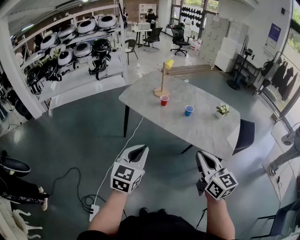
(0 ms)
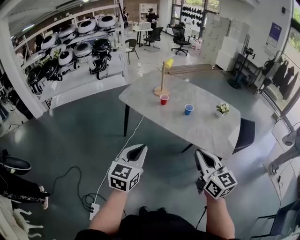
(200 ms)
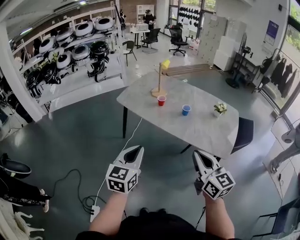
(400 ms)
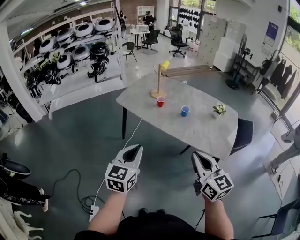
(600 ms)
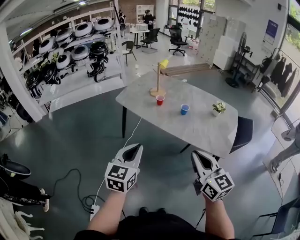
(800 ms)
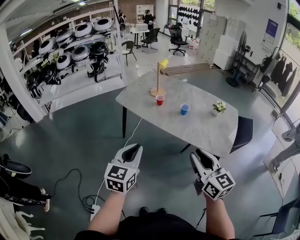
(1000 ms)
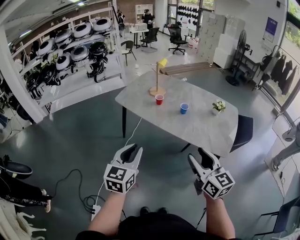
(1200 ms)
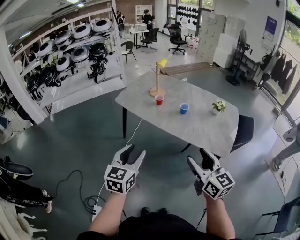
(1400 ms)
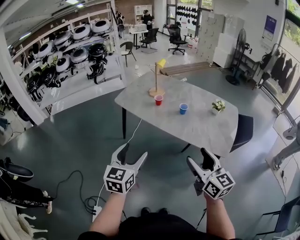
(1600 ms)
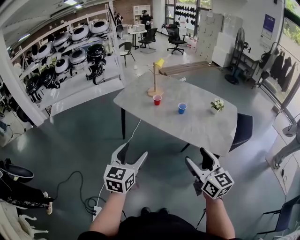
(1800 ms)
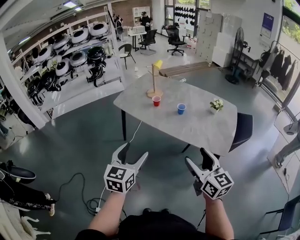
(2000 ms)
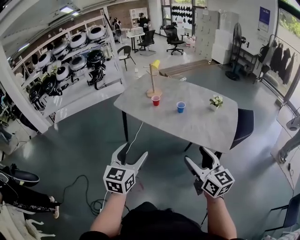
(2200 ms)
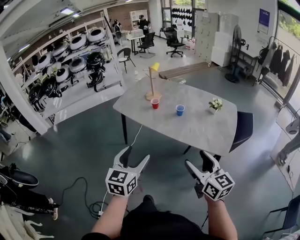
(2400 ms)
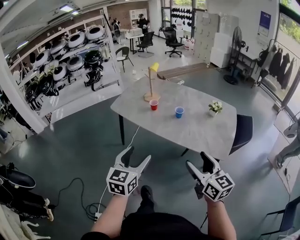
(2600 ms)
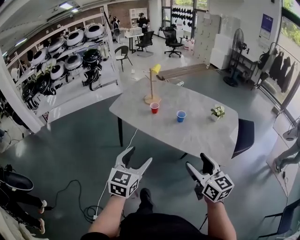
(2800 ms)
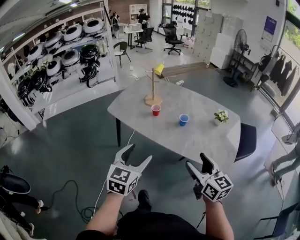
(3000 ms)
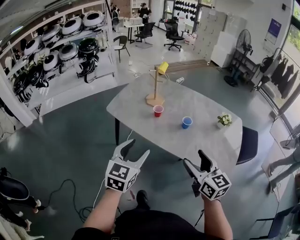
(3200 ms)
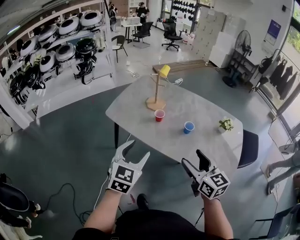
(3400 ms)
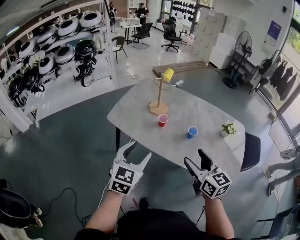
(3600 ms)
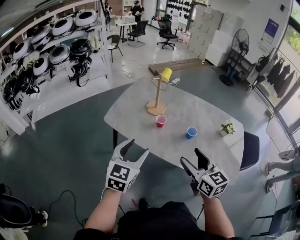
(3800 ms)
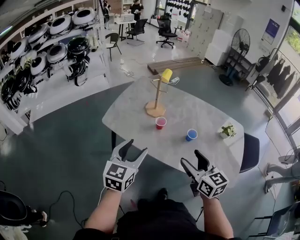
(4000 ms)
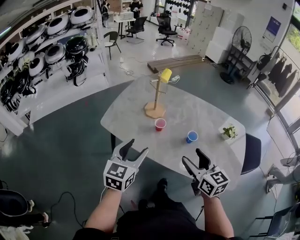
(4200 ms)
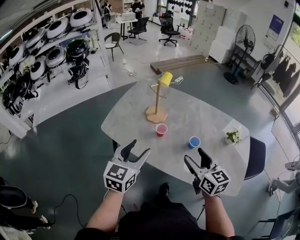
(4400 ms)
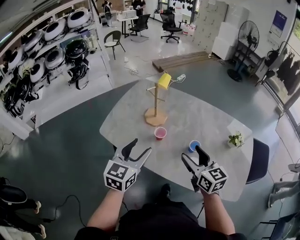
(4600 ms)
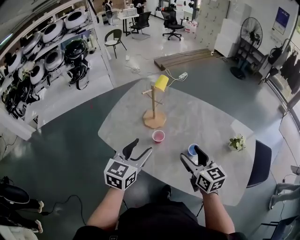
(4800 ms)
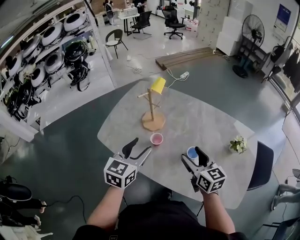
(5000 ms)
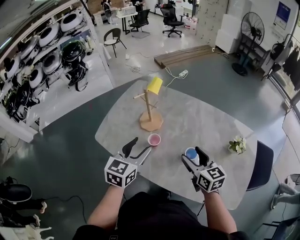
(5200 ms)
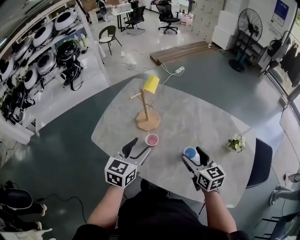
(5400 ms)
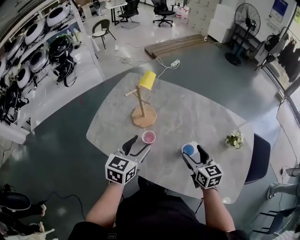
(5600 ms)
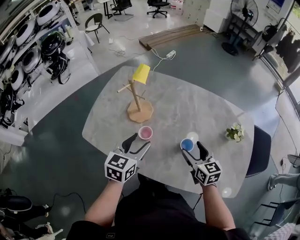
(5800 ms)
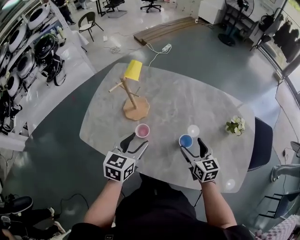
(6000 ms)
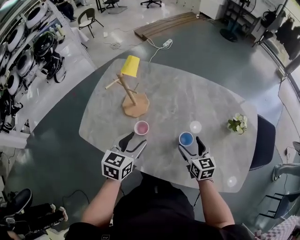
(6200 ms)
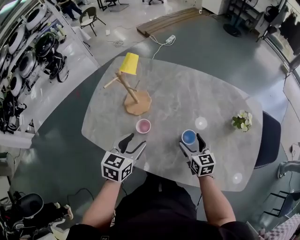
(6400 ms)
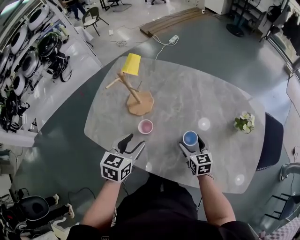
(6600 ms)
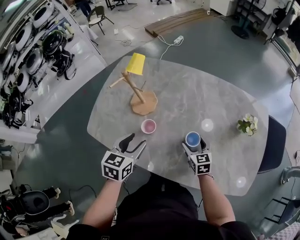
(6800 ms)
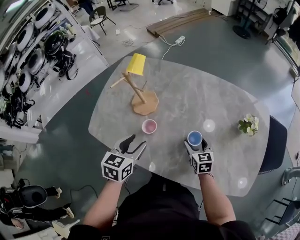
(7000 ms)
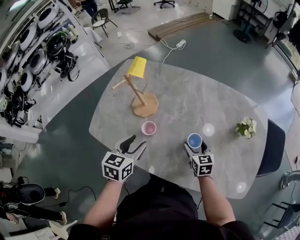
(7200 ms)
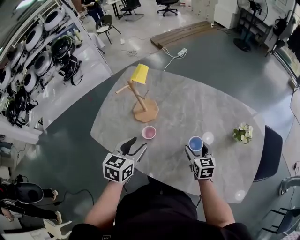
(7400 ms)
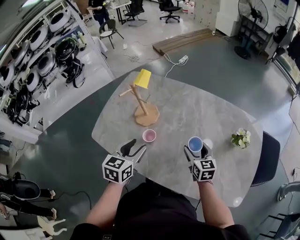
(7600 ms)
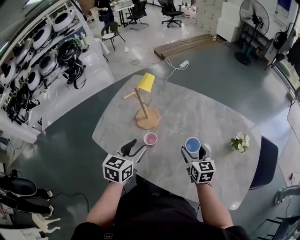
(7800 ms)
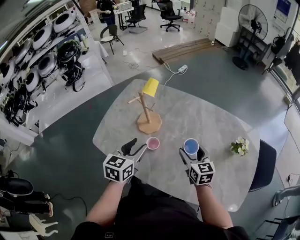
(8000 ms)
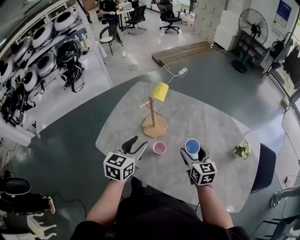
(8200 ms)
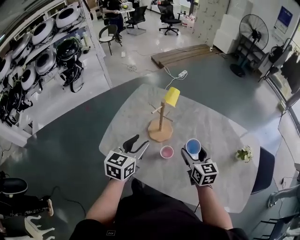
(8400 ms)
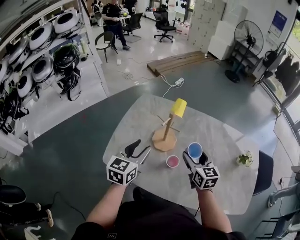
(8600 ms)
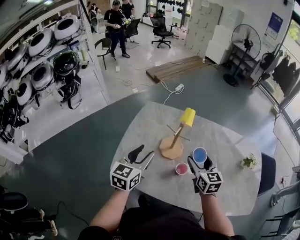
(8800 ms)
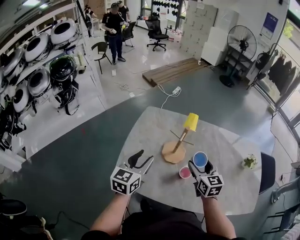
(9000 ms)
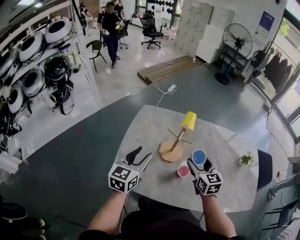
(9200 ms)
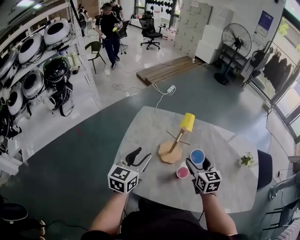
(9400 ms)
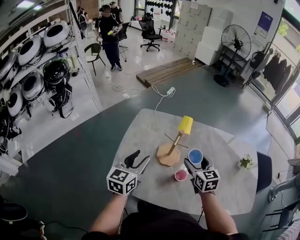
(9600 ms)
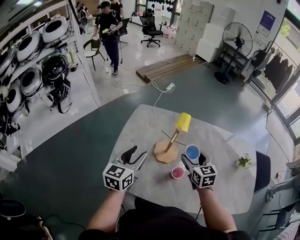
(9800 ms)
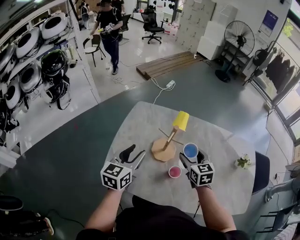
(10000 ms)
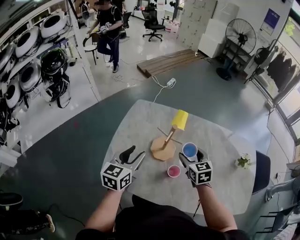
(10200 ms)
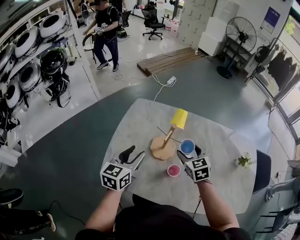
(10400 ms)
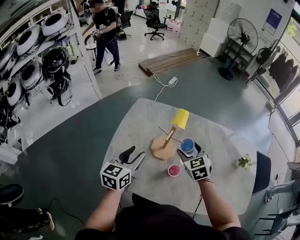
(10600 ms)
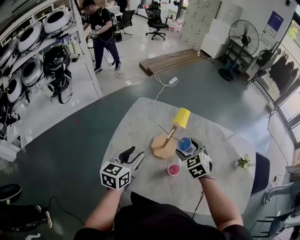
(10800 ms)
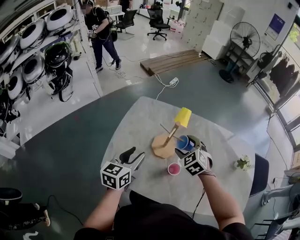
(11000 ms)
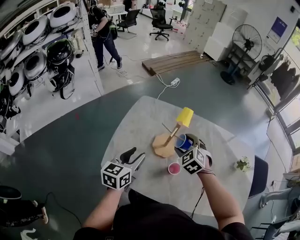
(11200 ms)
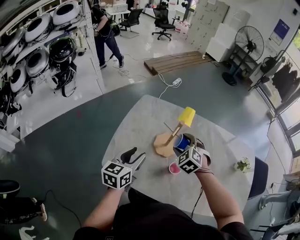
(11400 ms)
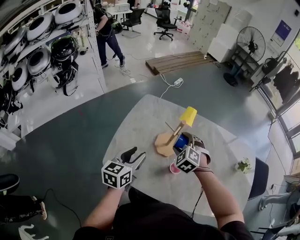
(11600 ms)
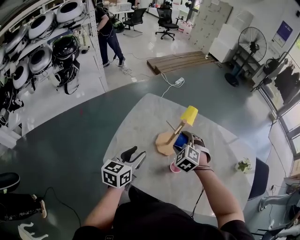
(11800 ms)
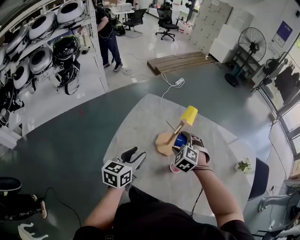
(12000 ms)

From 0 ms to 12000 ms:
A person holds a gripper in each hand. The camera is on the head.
From 0 ms to 1600 ms: The right gripper opens. The left gripper opens its fingers.
From 1600 ms to 3000 ms: Both grippers move forward, roughly 15 cm.
From 3000 ms to 4400 ms: Both grippers move forward, approximately 25 cm.
From 4400 ms to 6000 ms: The left gripper goes approximately 20 cm forward, downward and to the right, while the right gripper travels downward, forward and to the right by roughly 25 cm.
From 6000 ms to 7600 ms: The right gripper reaches some 10 cm downward, then returns.
From 7600 ms to 9000 ms: The right gripper heads to the left and upward, covering some 25 cm, while the left gripper goes about 25 cm to the left and forward.
From 9000 ms to 10400 ms: The right gripper shifts roughly 5 cm forward, and changes its angle by some 20 degrees.
From 10400 ms to 12000 ms: The left gripper moves about 5 cm. Meanwhile the right gripper is displaced to the left by approximately 10 cm, and rolls counterclockwise, seen from behind, by some 50 degrees.

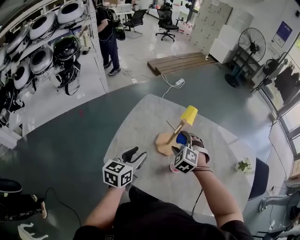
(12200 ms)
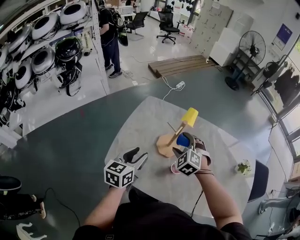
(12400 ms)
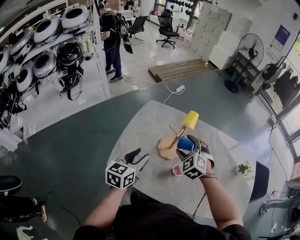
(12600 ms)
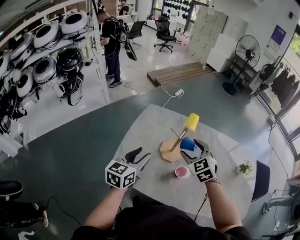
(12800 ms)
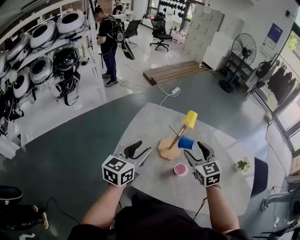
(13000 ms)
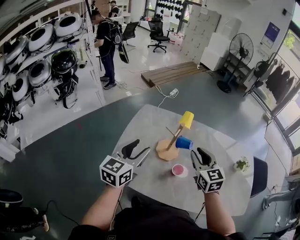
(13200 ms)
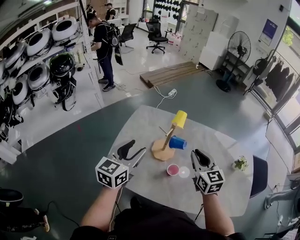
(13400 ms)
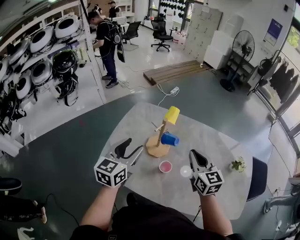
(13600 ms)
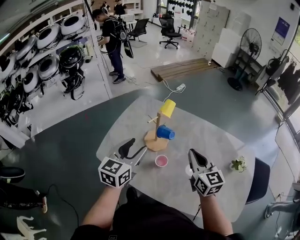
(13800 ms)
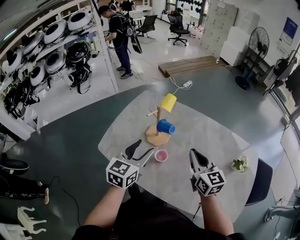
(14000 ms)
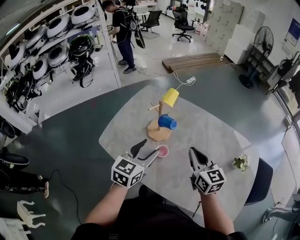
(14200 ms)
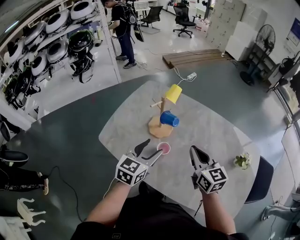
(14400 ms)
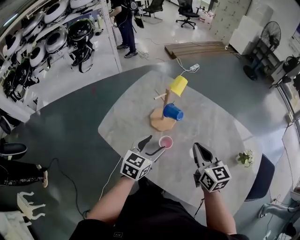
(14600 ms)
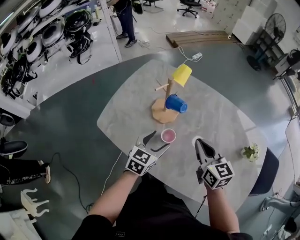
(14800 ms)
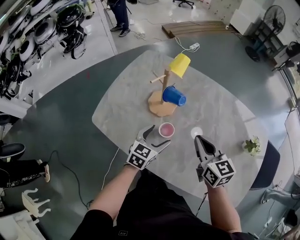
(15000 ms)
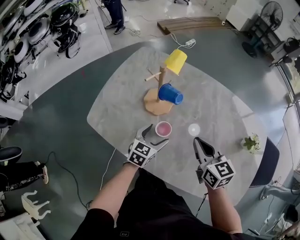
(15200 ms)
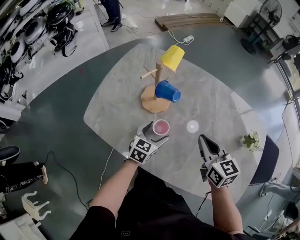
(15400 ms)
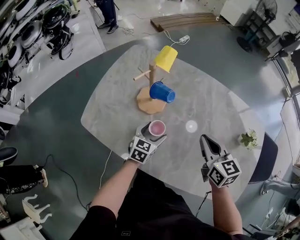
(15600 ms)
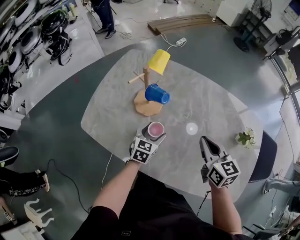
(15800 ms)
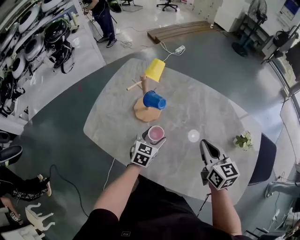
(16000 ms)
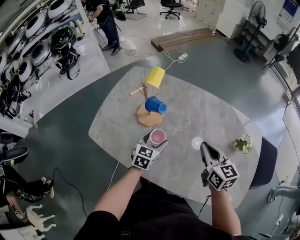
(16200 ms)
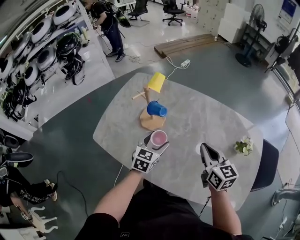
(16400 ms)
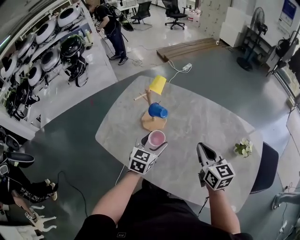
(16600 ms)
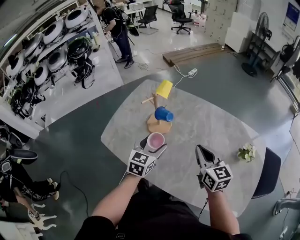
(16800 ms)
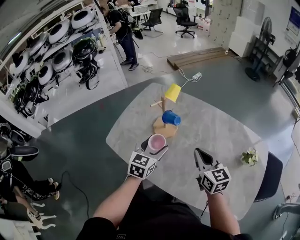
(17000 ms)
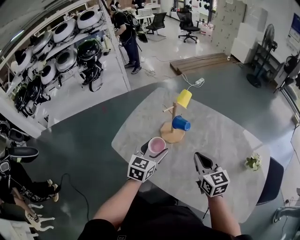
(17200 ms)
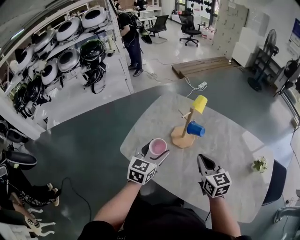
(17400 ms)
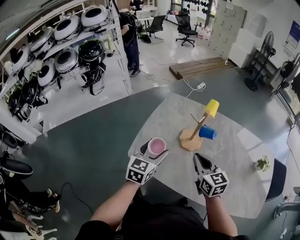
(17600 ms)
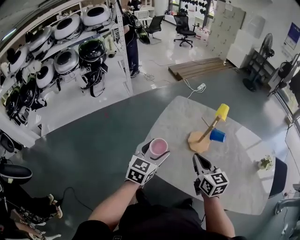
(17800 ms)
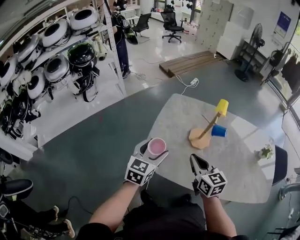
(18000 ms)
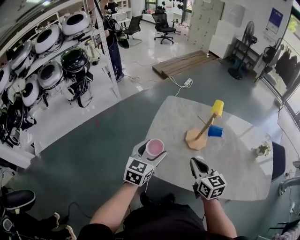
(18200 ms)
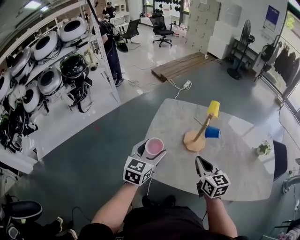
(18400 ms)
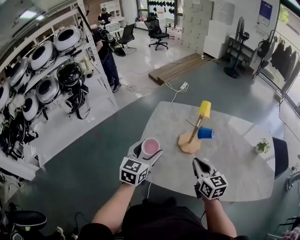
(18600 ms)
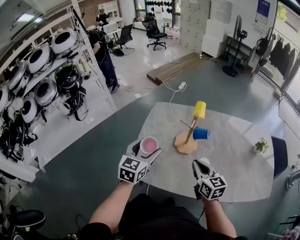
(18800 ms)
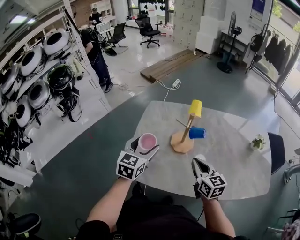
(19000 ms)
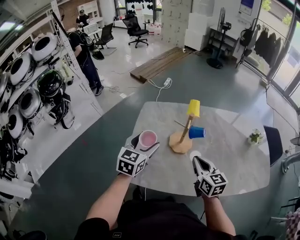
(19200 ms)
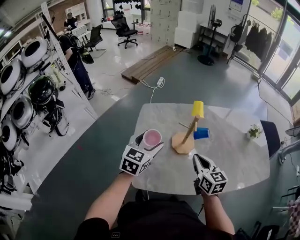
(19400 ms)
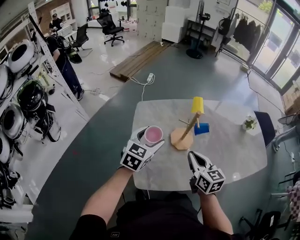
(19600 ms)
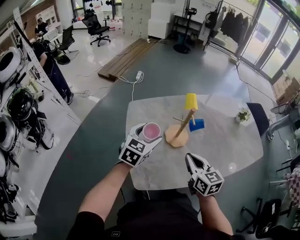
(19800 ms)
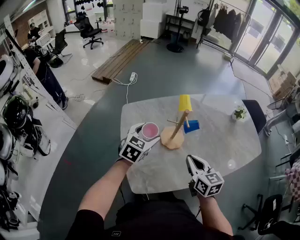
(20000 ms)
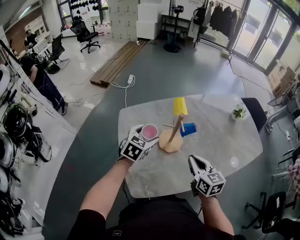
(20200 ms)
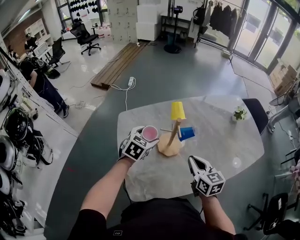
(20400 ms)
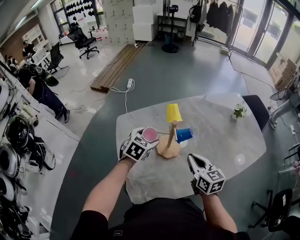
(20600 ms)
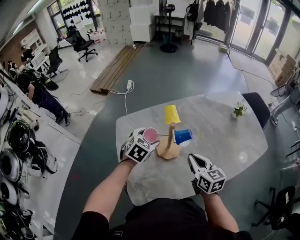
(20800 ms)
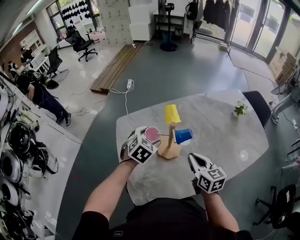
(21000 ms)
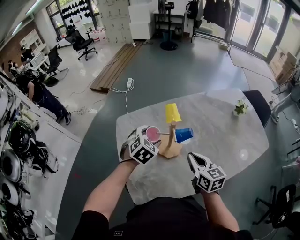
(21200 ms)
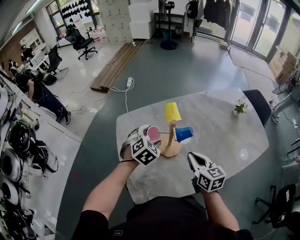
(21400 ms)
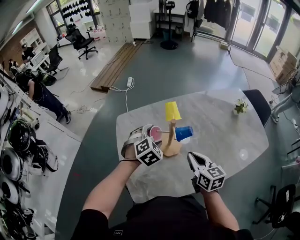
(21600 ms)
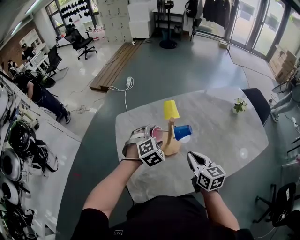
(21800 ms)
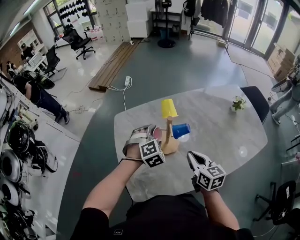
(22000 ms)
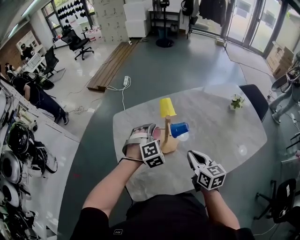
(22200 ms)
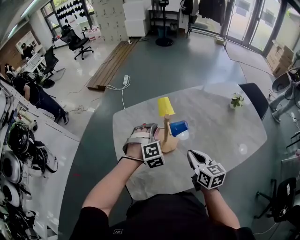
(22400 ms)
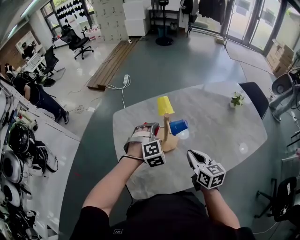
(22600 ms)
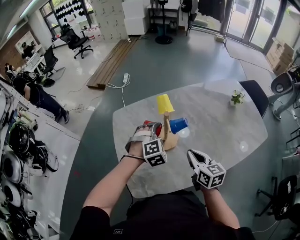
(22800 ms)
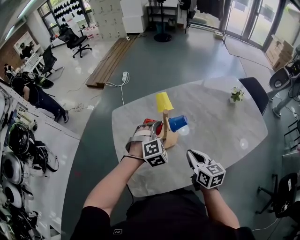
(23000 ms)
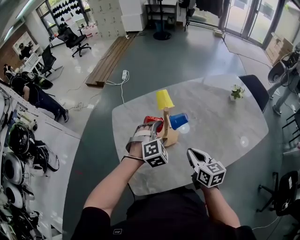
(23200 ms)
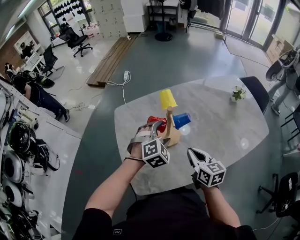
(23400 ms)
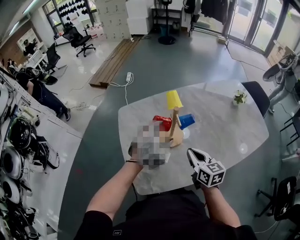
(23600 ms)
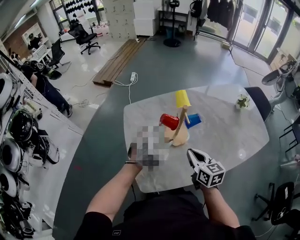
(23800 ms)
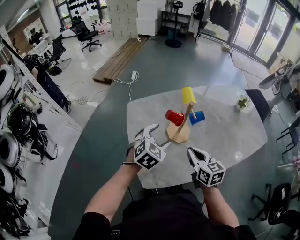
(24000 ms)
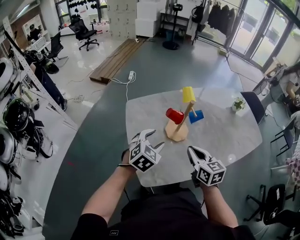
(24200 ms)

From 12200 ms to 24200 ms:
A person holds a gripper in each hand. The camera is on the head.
From 12200 ms to 13800 ms: The left gripper heads to the right and upward, covering roughly 15 cm. Meanwhile the right gripper heads to the right, upward and backward, covering roughly 25 cm, rolls clockwise, seen from behind, by roughly 60 degrees, and closes.
From 13800 ms to 15200 ms: The left gripper travels downward and to the right by some 30 cm, changes its angle by roughly 20 degrees, and opens. Meanwhile the right gripper heads downward, covering approximately 10 cm.
From 15200 ms to 16600 ms: The left gripper goes about 10 cm upward. The right gripper moves to the right and upward, about 10 cm.
From 16600 ms to 18200 ms: Both grippers move to the left, approximately 35 cm.
From 18200 ms to 19800 ms: The right gripper swivels some 30 degrees, while the left gripper shifts by roughly 15 cm, and rotates roughly 30 degrees.
From 19800 ms to 21200 ms: The right gripper travels to the right and forward by about 10 cm, while the left gripper travels forward, to the right and downward by roughly 15 cm, and swivels roughly 30 degrees.
From 21200 ms to 22600 ms: The left gripper moves roughly 5 cm, and turns by about 40 degrees.
From 22600 ms to 24200 ms: The right gripper moves to the left and backward, roughly 10 cm, while the left gripper travels backward and to the left by approximately 15 cm, and turns by approximately 40 degrees.
